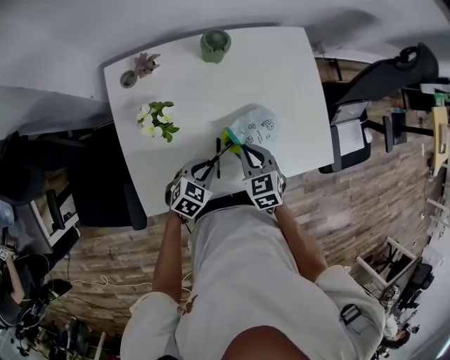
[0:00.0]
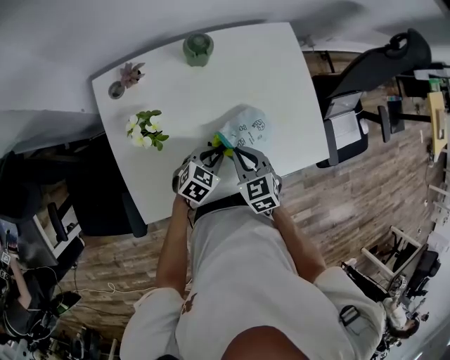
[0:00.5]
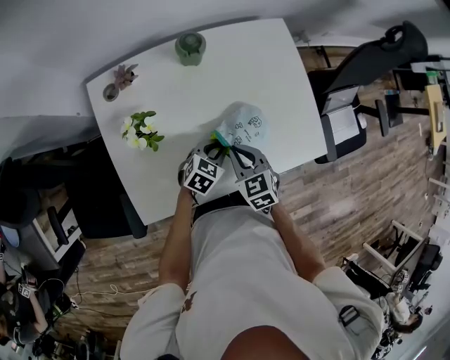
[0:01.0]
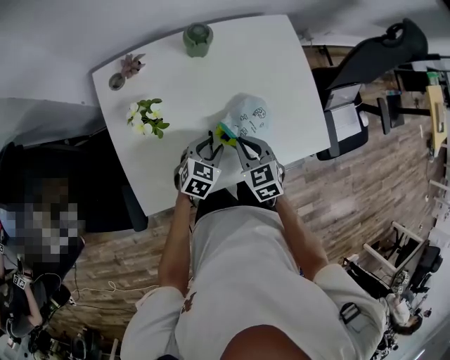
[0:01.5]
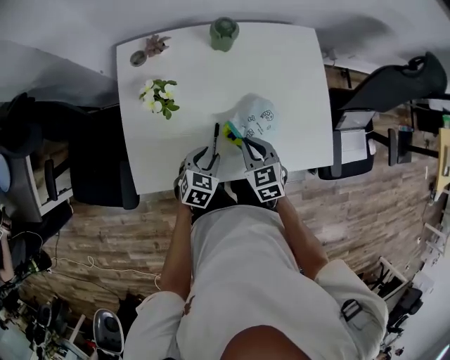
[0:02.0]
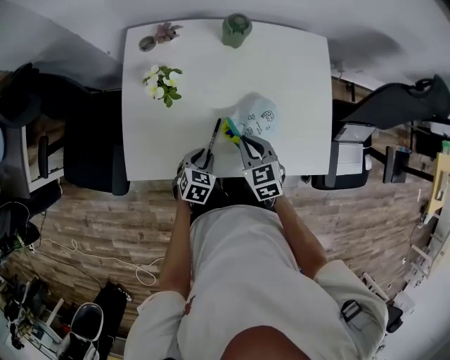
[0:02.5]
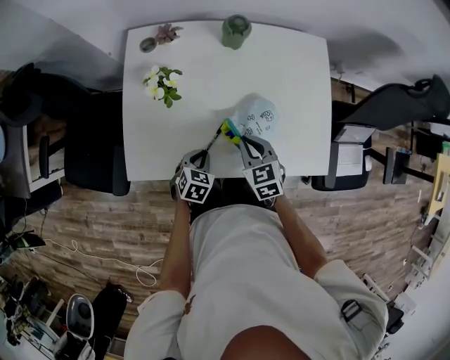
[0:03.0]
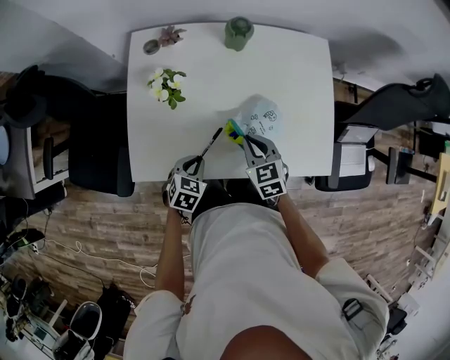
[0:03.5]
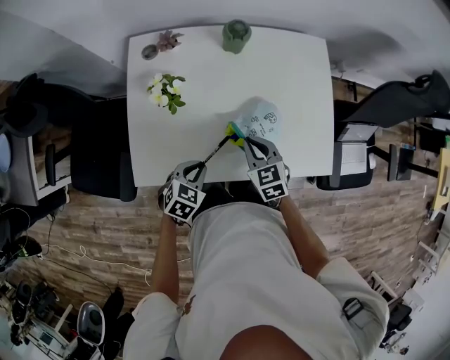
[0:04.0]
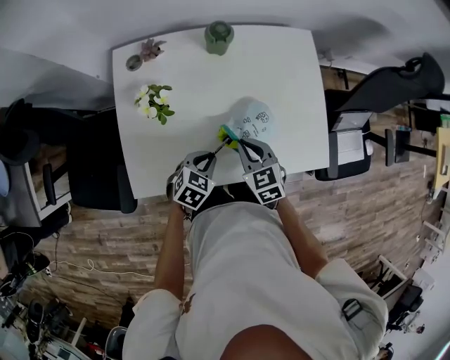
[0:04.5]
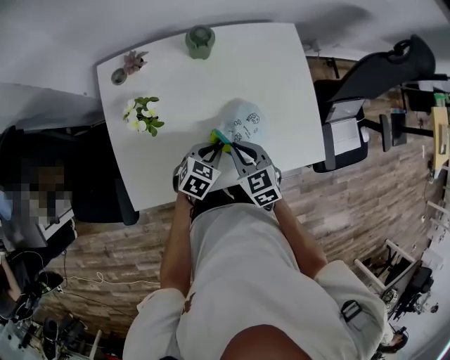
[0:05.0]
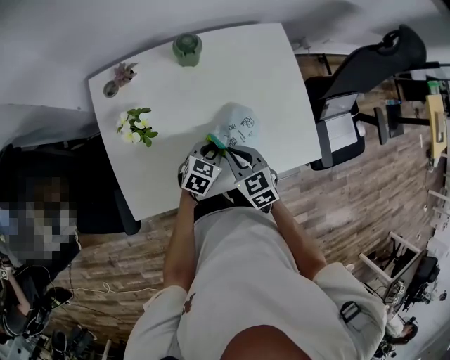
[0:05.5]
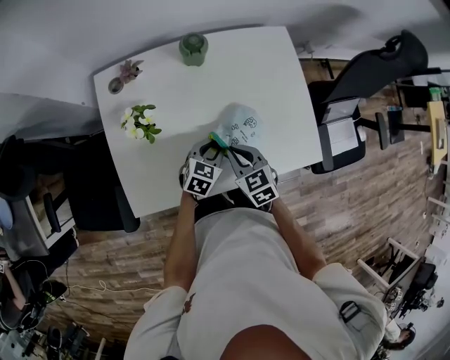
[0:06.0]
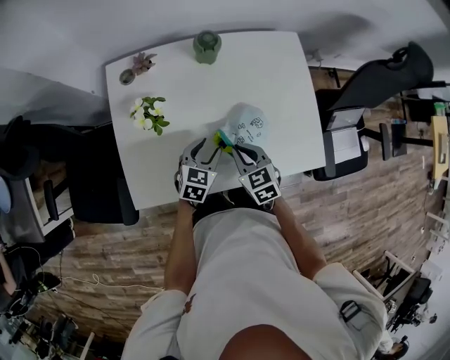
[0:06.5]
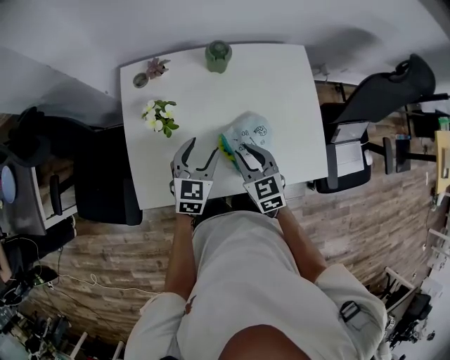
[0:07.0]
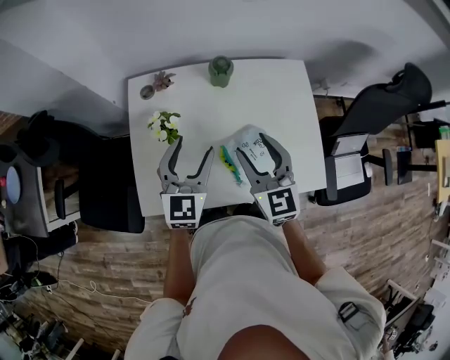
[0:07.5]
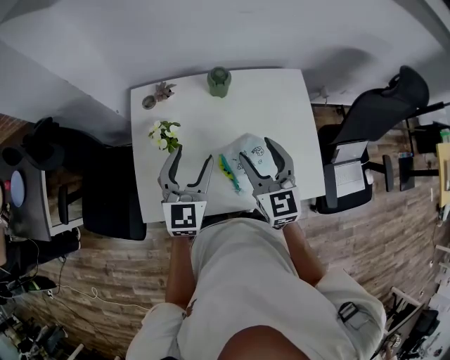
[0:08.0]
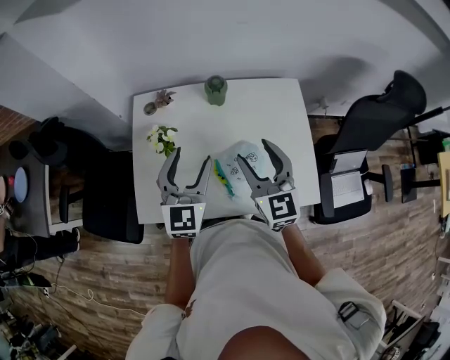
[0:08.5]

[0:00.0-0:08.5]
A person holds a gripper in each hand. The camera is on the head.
0:00.0 to 0:02.0: The left gripper travels forward and back again, approximately 10 cm each way.
0:02.0 to 0:04.0: The left gripper shifts by some 5 cm, and closes its fingers.
0:04.0 to 0:06.5: The left gripper moves forward, roughly 10 cm, and opens up.
0:06.5 to 0:08.5: The two grippers go roughly 25 cm upward. The right gripper angles its fingers upward, by about 40 degrees, and opens. The left gripper tips its fingers upward by some 30 degrees.

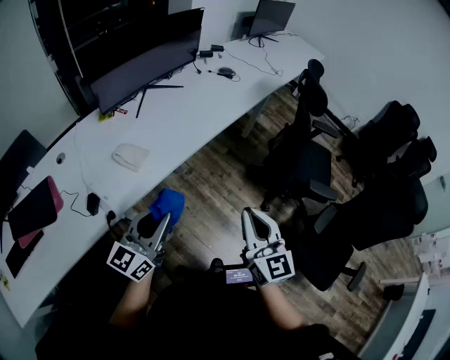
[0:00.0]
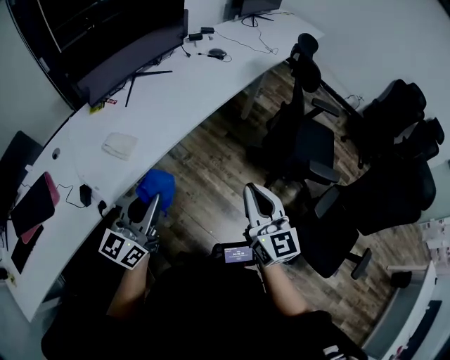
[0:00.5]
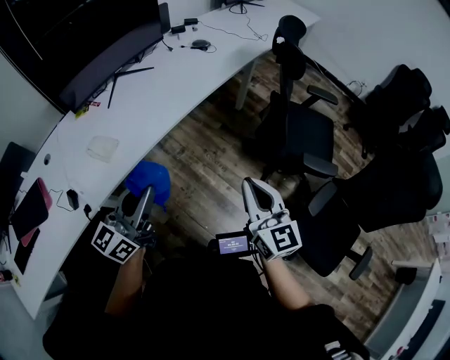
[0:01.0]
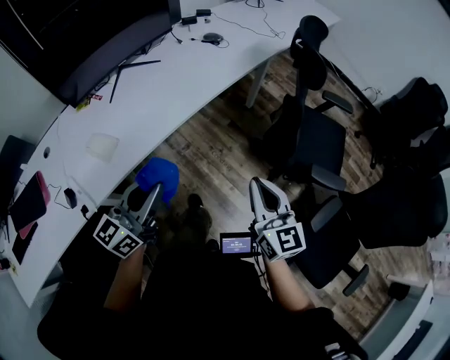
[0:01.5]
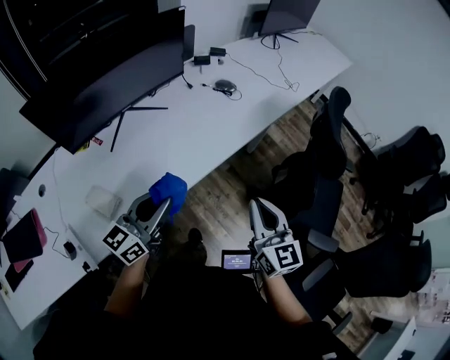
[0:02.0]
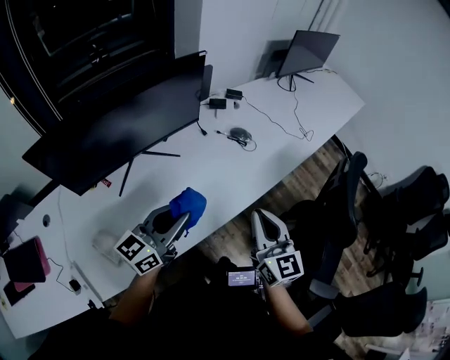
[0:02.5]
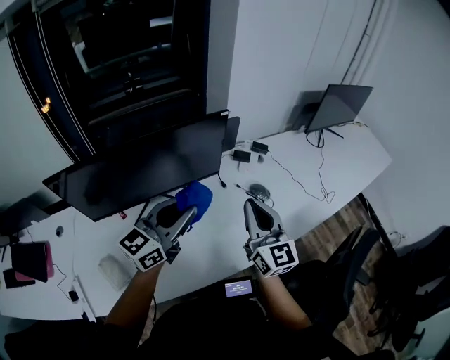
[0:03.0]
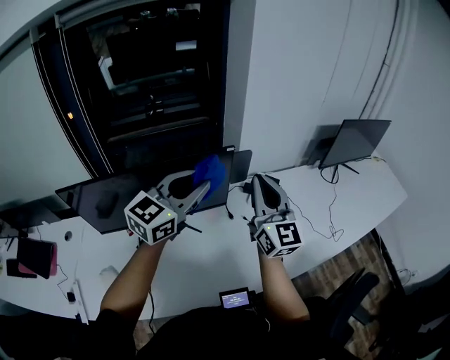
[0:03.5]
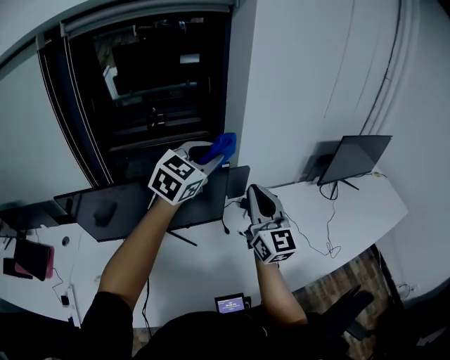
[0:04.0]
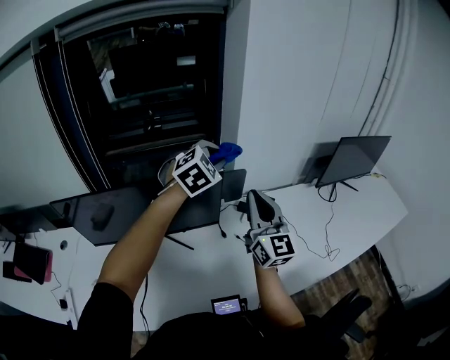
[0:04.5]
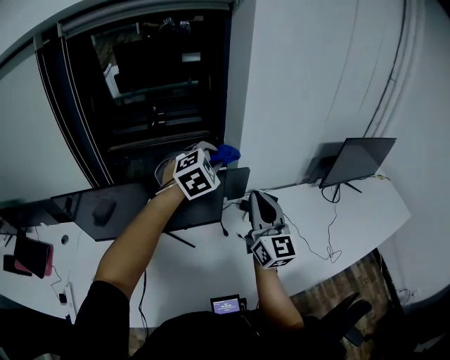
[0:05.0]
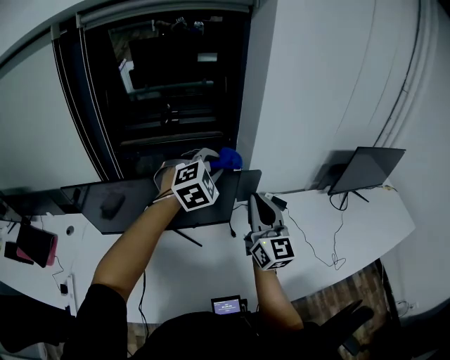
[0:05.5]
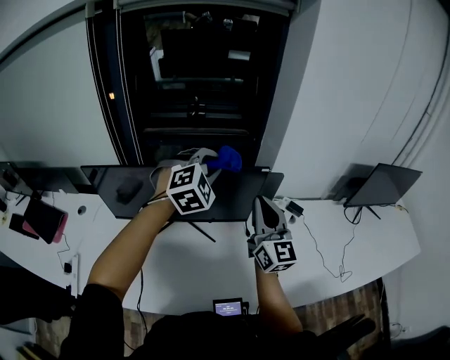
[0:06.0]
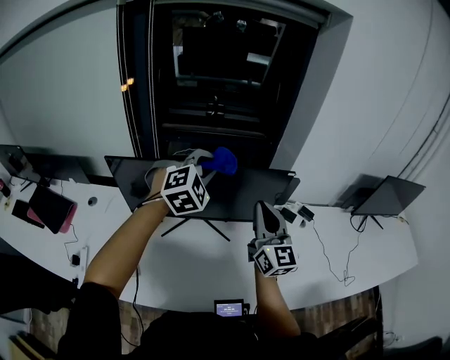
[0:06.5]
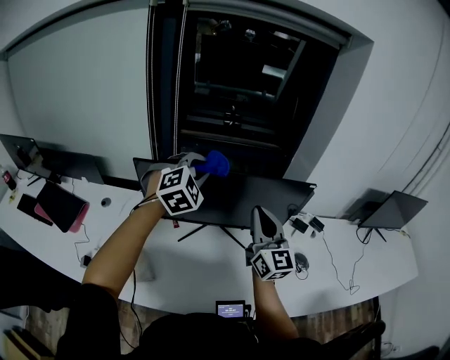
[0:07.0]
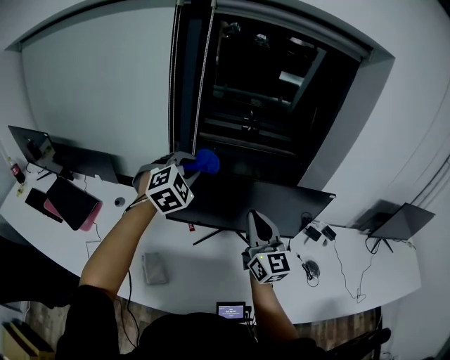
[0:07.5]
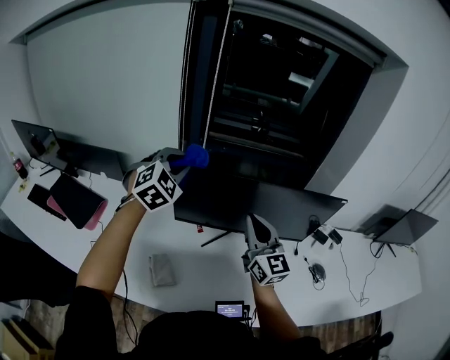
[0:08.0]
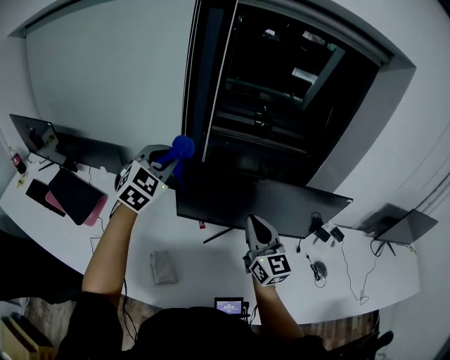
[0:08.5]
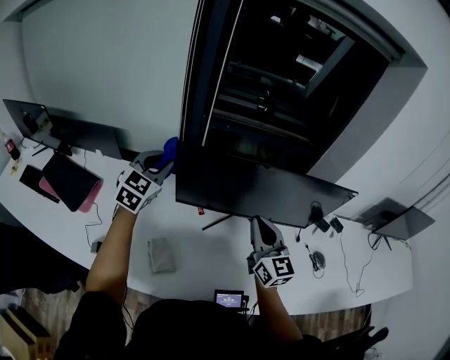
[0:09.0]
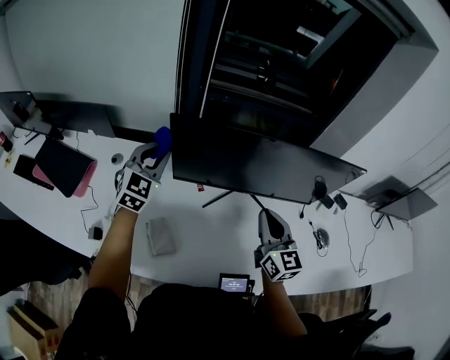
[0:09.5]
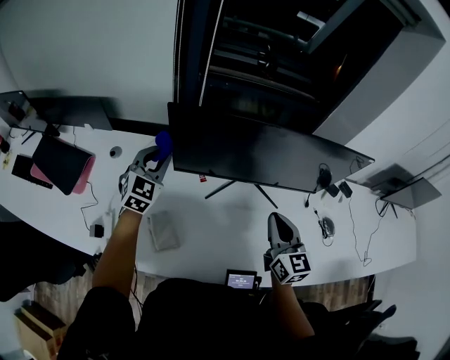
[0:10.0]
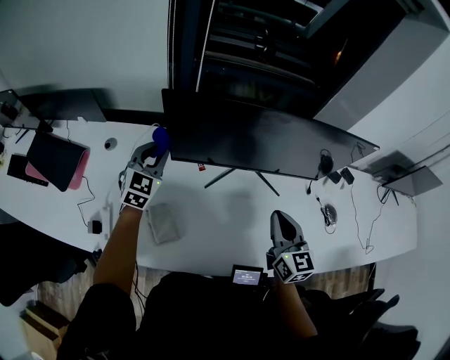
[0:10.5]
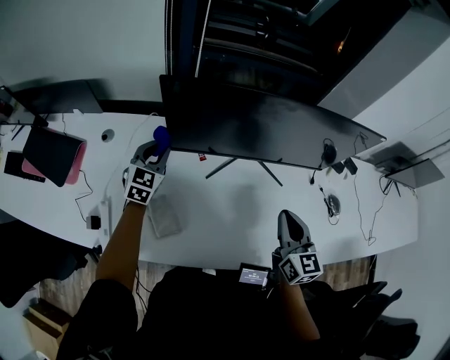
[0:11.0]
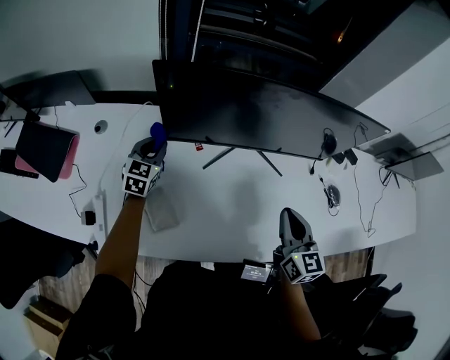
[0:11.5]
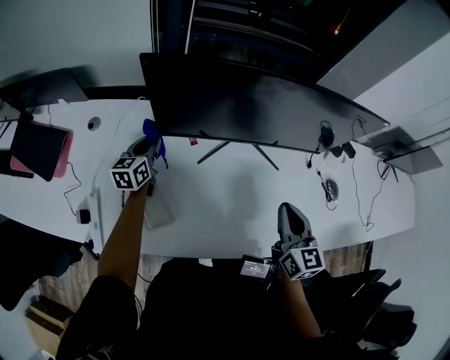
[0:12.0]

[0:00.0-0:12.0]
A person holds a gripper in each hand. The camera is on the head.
0:00.0 to 0:02.0: Both grippers move forward, roughly 35 cm.
0:02.0 to 0:04.0: The two grippers travel together, approximately 50 cm. The left gripper rotates approximately 50 degrees. Meanwhile the right gripper changes its angle by about 40 degrees.
0:04.0 to 0:06.0: The left gripper shifts some 10 cm to the left and downward, and swivels roughly 40 degrees; the right gripper goes approximately 5 cm to the left.
0:06.0 to 0:08.0: The grippers both shift to the left by some 35 cm. The left gripper turns by about 20 degrees.
0:08.0 to 0:10.0: The right gripper is displaced downward, to the right and backward by some 15 cm, and changes its angle by roughly 20 degrees; the left gripper travels downward by roughly 20 cm, and changes its angle by roughly 20 degrees.
0:10.0 to 0:12.0: The right gripper changes place by about 5 cm. The left gripper goes about 15 cm downward, and rotates around the line of its fingers by some 50 degrees, counterclockwise from behind.

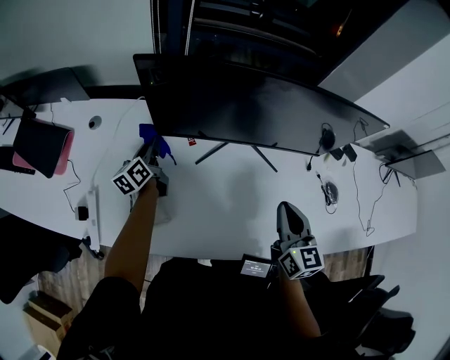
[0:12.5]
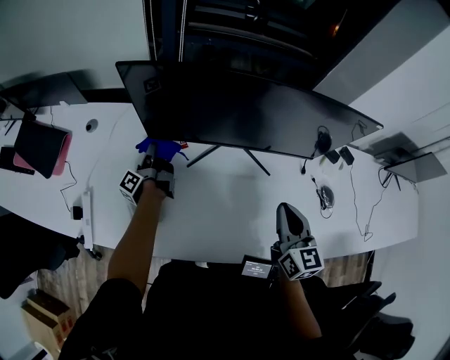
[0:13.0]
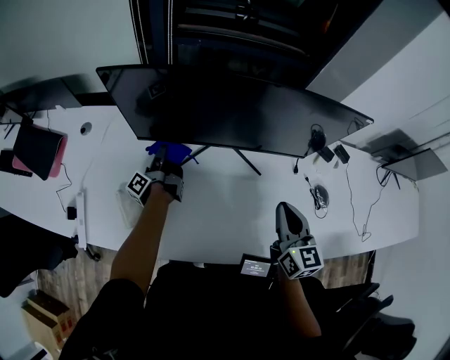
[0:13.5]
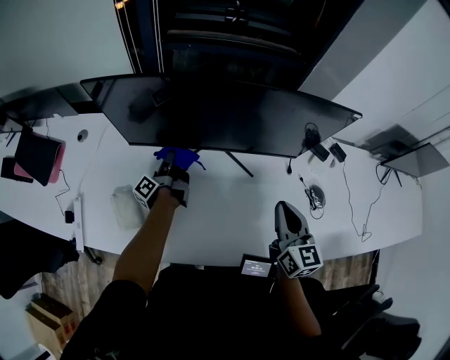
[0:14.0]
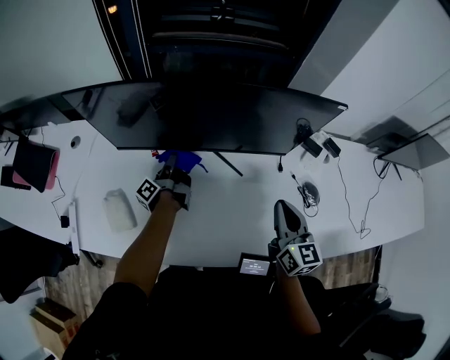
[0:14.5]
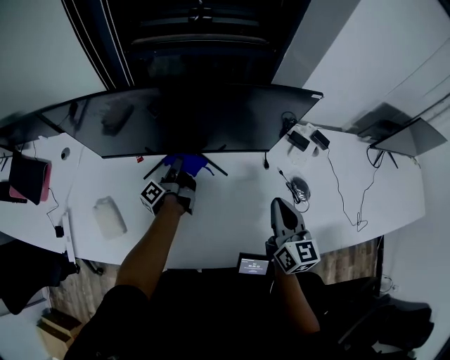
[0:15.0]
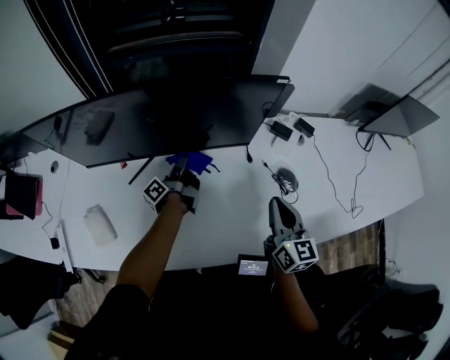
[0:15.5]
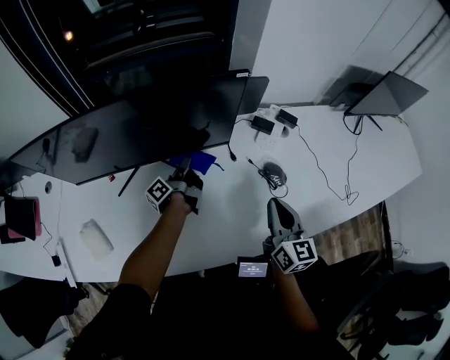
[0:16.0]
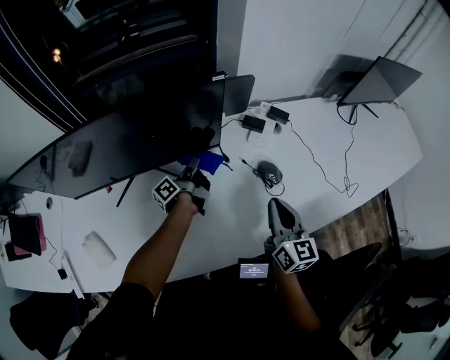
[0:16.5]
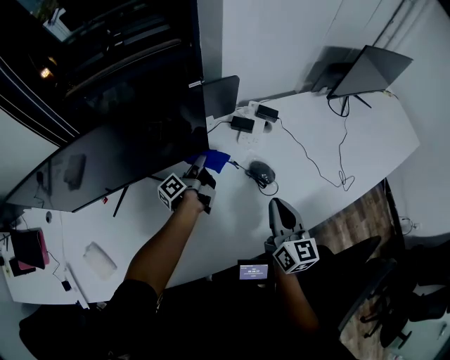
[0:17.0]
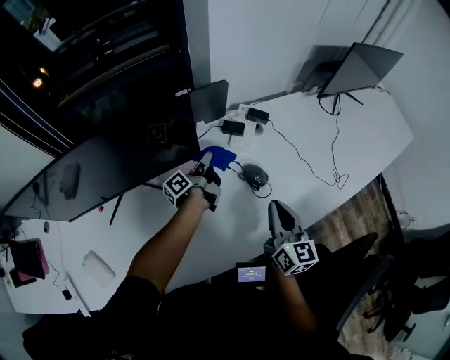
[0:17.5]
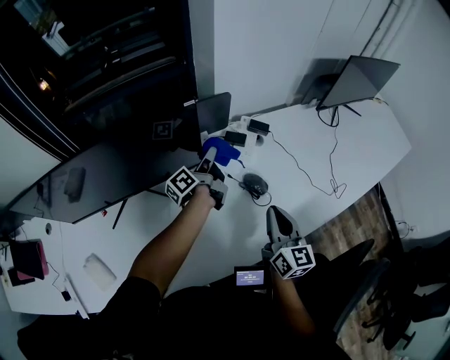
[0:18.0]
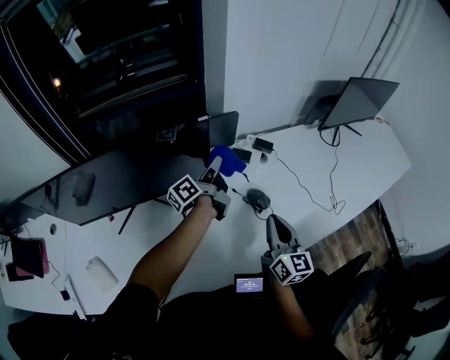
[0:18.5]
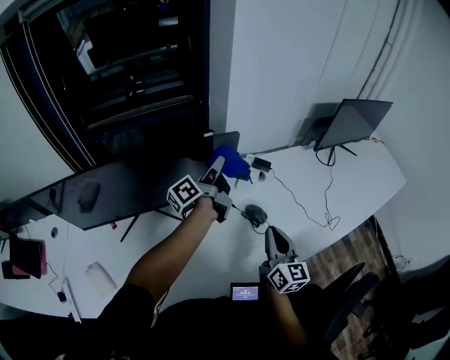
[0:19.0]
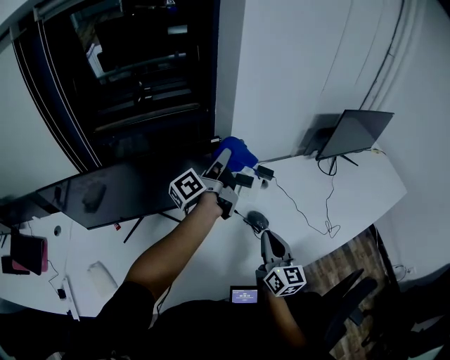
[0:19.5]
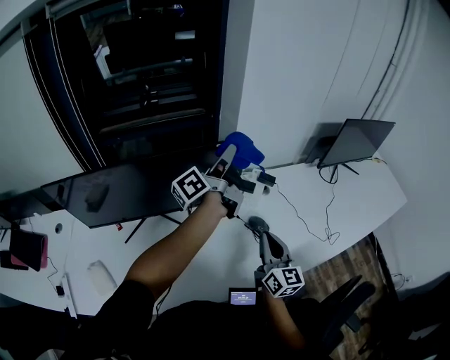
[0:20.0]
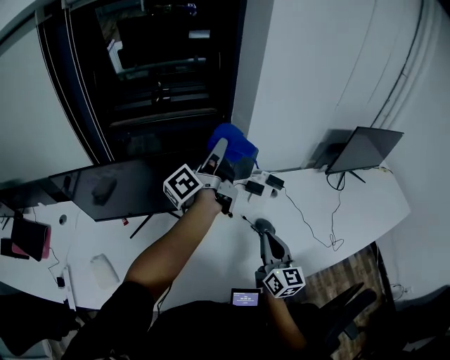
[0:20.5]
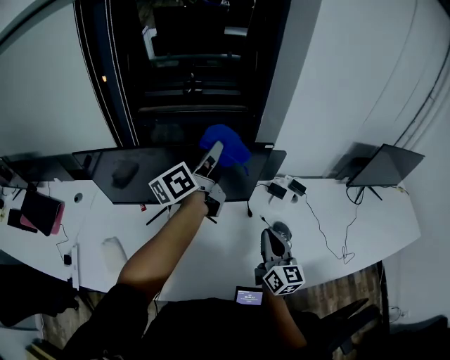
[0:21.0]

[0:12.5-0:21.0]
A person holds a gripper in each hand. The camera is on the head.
0:12.5 to 0:14.5: Both grippers travel together to the right, about 20 cm. The left gripper twists roughly 50 degrees counterclockwise, seen from behind.
0:14.5 to 0:16.5: The left gripper is displaced to the right by about 30 cm, and rotates approximately 30 degrees. Meanwhile the right gripper heads to the right, covering roughly 15 cm.
0:16.5 to 0:19.0: The left gripper goes about 25 cm upward and to the right, and turns by roughly 20 degrees. The right gripper goes about 5 cm upward.
0:19.0 to 0:21.0: The right gripper is displaced to the left by roughly 10 cm. Meanwhile the left gripper shifts approximately 20 cm to the left and upward, and rotates about 30 degrees.
